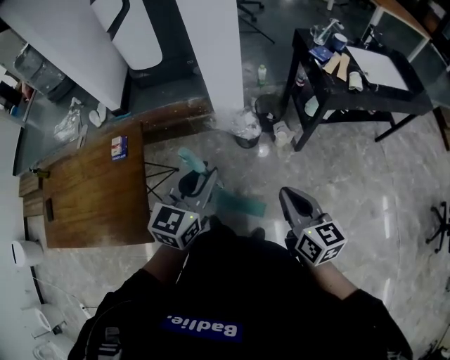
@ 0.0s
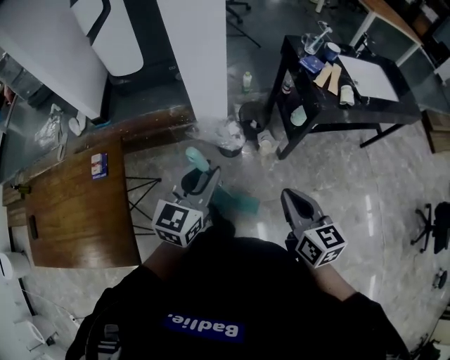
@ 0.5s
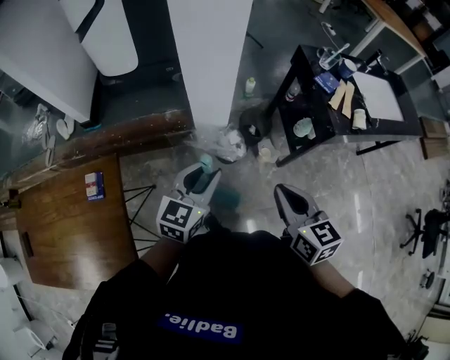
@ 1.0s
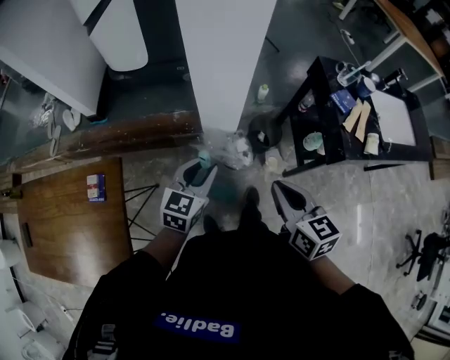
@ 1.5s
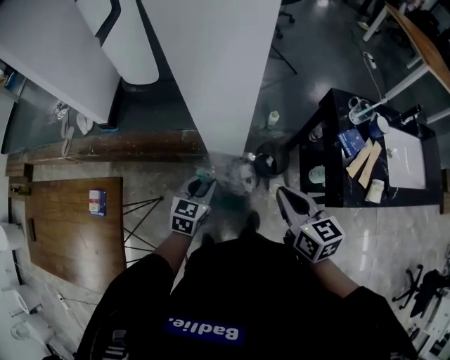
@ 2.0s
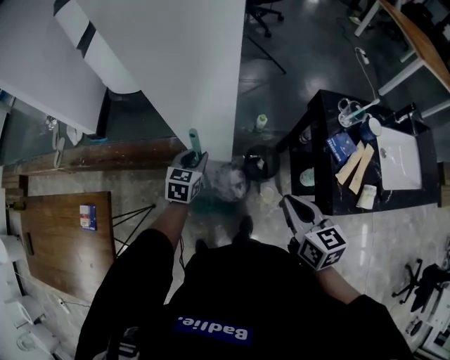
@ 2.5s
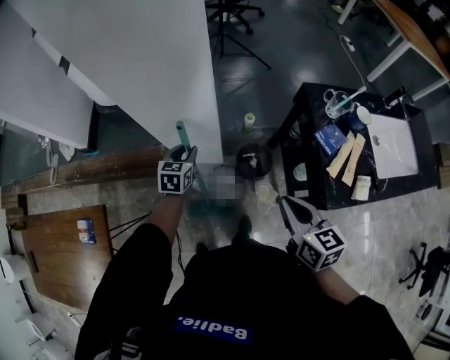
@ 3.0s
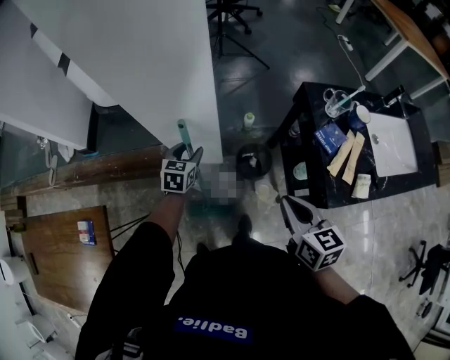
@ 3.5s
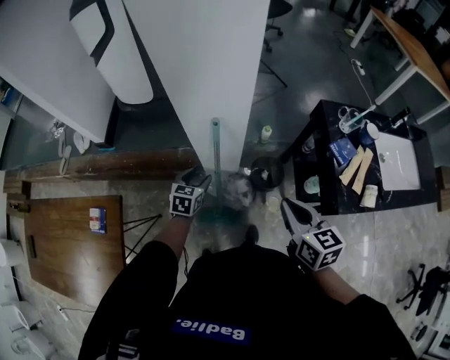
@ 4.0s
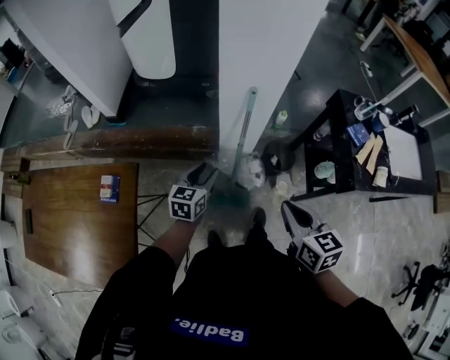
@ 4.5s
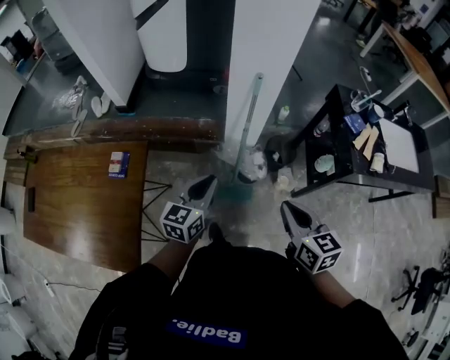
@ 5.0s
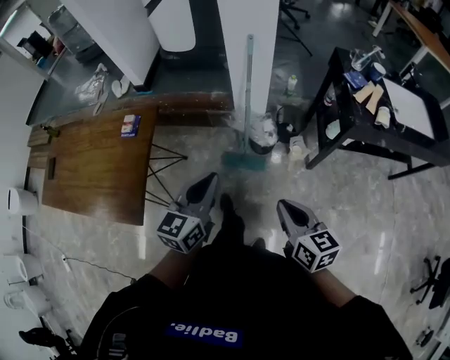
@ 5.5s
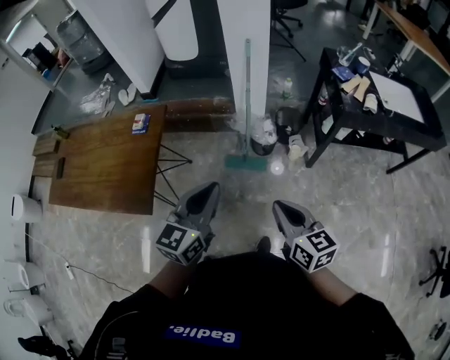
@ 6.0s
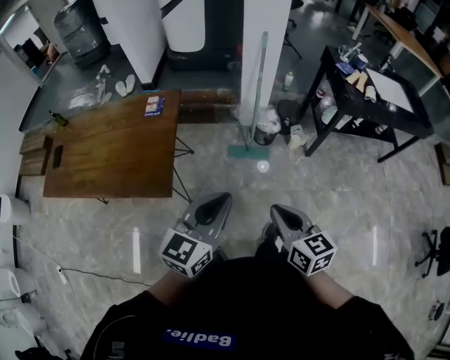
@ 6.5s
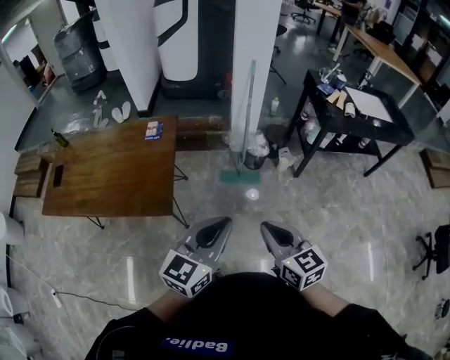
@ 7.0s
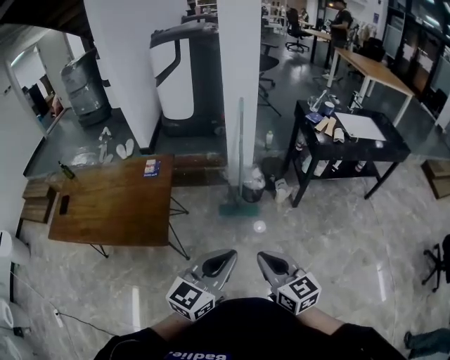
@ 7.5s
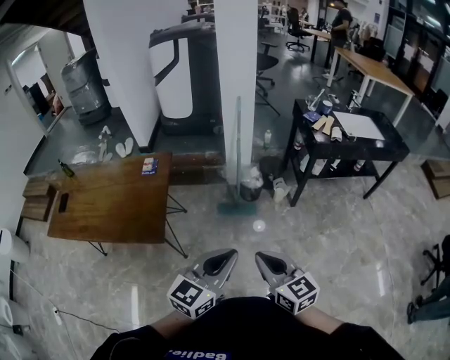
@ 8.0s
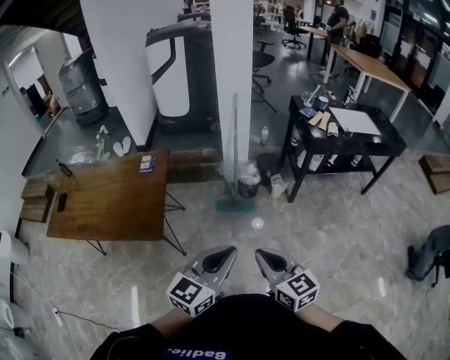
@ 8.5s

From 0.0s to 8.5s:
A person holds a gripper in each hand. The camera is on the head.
From 0.0s to 2.0s: The right gripper goes roughly 40 cm forward. Meanwhile the left gripper goes about 40 cm forward and downward, and turns by some 20 degrees.
From 2.0s to 4.0s: The right gripper moves roughly 10 cm to the right and comes back. Meanwhile the left gripper is displaced forward by some 10 cm, and opens.
From 4.0s to 6.5s: Both grippers are carried backward, approximately 70 cm. The left gripper angles its fingers upward, by about 30 degrees, and closes.
From 6.5s to 8.5s: The right gripper travels backward and upward by approximately 10 cm, while the left gripper heads to the right and backward, covering roughly 15 cm.

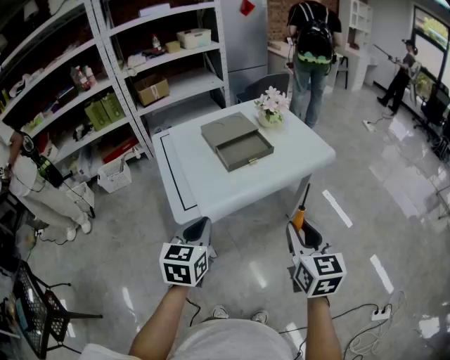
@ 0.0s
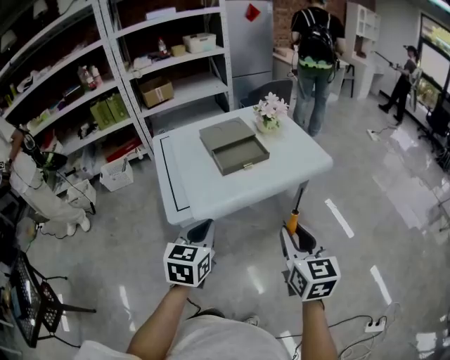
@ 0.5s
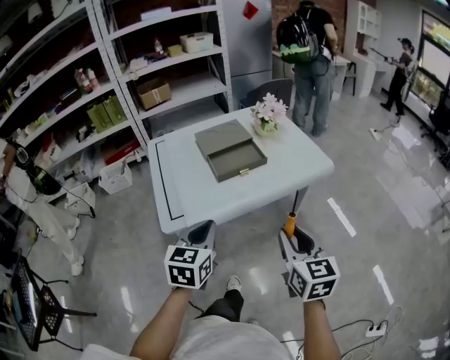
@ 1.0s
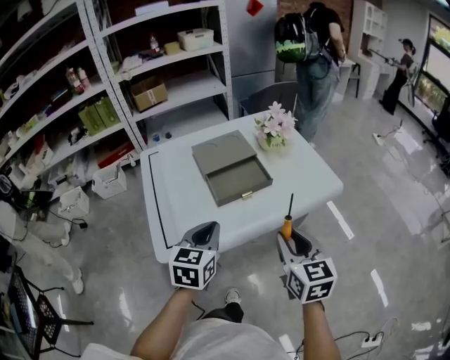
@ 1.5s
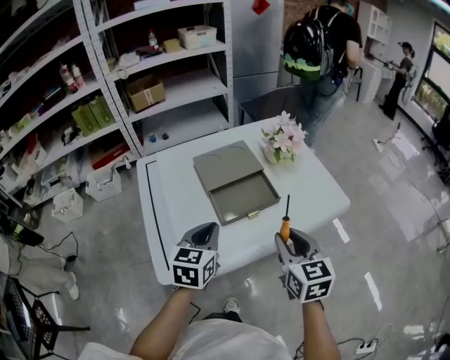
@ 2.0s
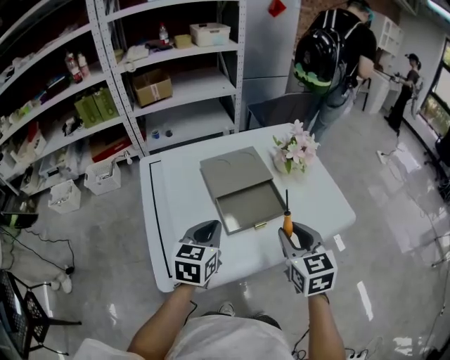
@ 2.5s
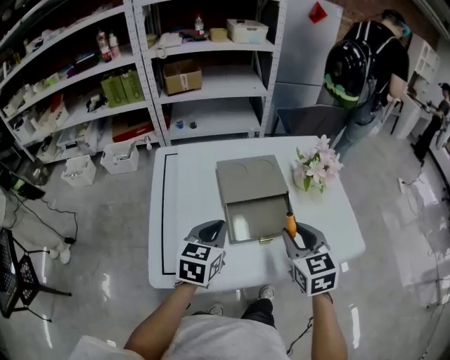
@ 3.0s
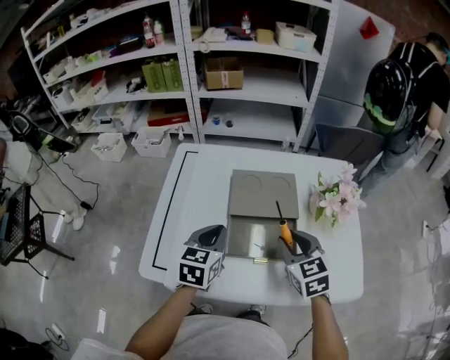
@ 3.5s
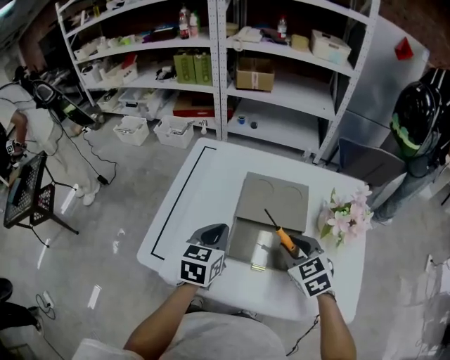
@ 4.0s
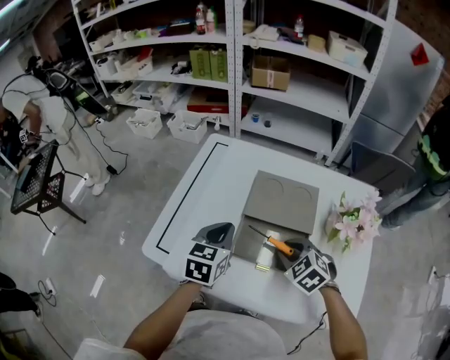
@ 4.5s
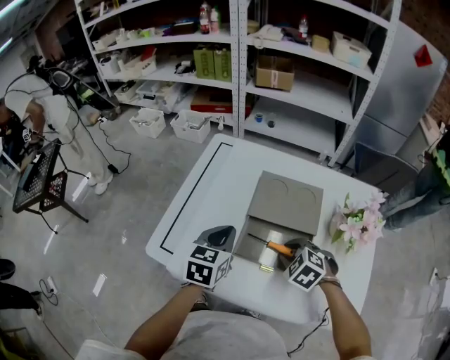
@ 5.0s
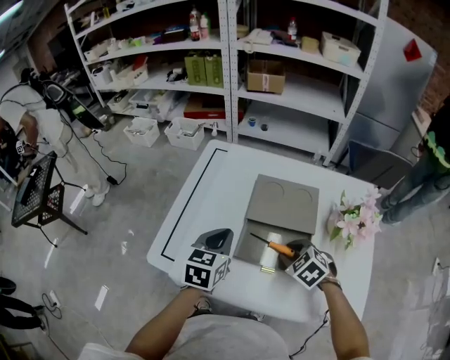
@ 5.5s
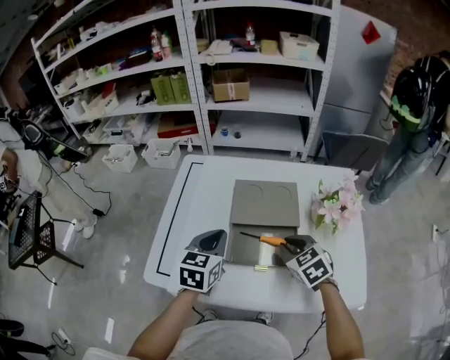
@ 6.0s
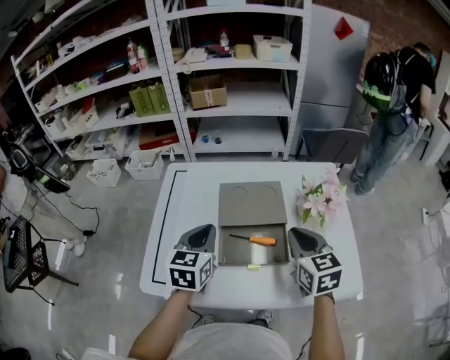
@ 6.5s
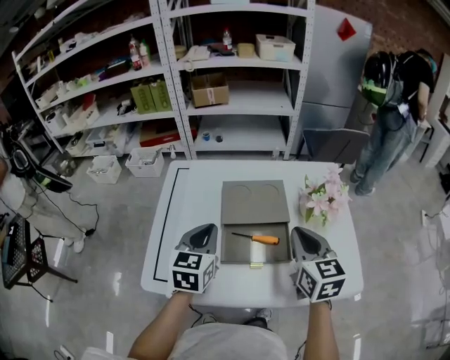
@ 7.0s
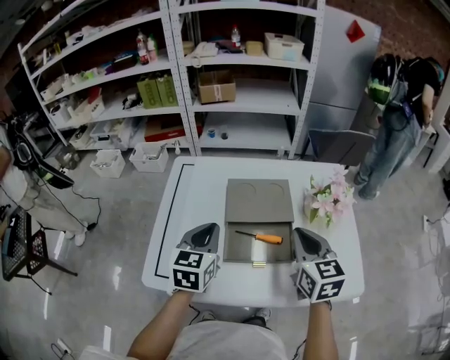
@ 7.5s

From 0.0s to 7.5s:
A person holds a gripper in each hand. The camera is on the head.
From 0.0s to 2.0s: Both grippers travel together forward, about 25 cm.
From 2.0s to 4.0s: The left gripper moves roughly 10 cm, and changes its angle by approximately 30 degrees; the right gripper moves about 25 cm, and swivels about 60 degrees.
From 4.0s to 5.5s: The right gripper is displaced downward by approximately 10 cm, and swivels some 20 degrees.
From 5.5s to 7.5s: The left gripper heads upward, covering roughly 5 cm; the right gripper travels upward by roughly 20 cm, points its fingers roughly 40 degrees further upward, and closes up.

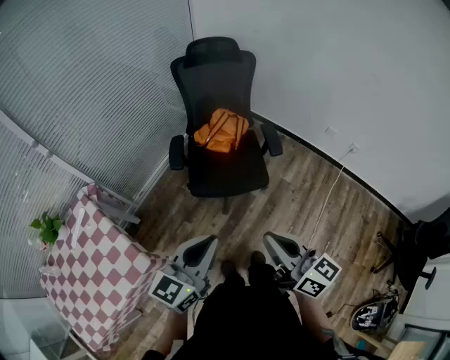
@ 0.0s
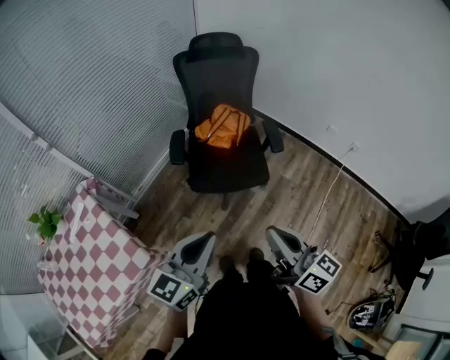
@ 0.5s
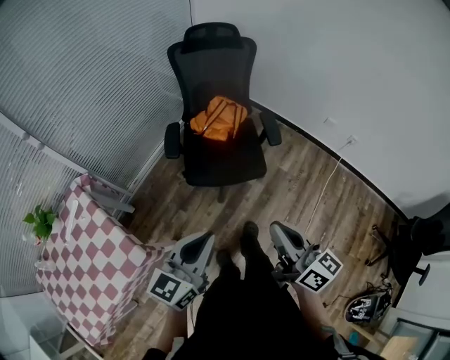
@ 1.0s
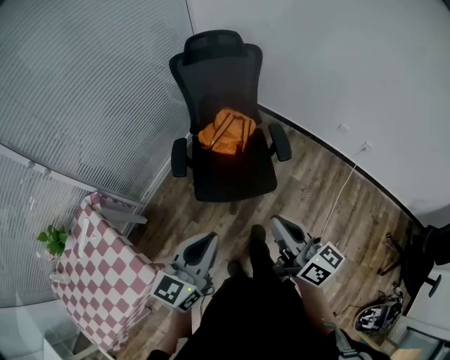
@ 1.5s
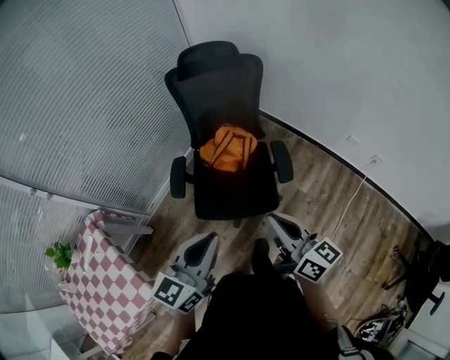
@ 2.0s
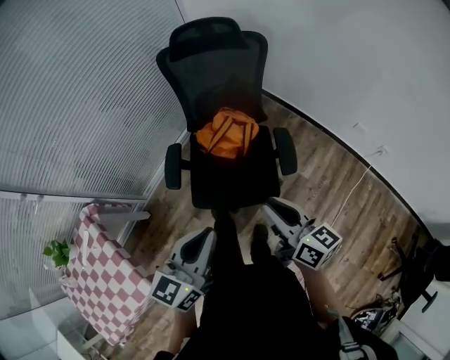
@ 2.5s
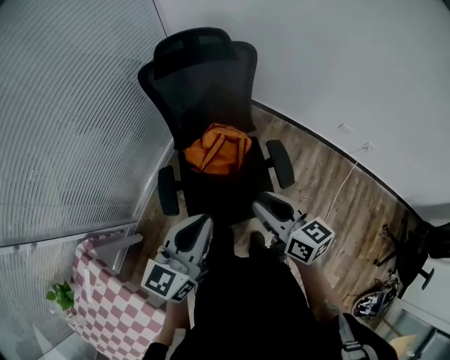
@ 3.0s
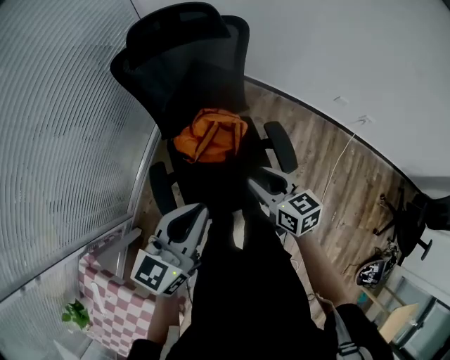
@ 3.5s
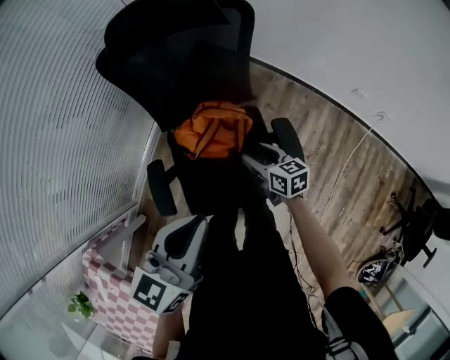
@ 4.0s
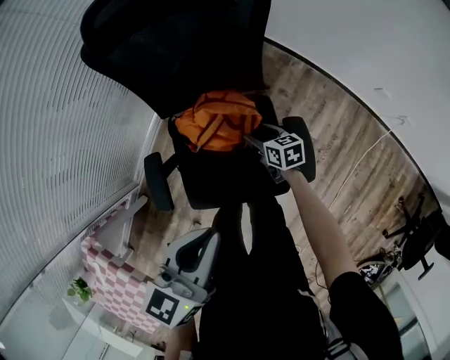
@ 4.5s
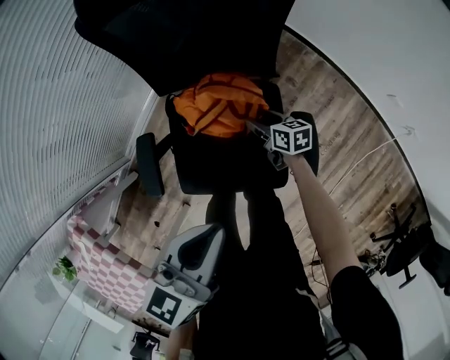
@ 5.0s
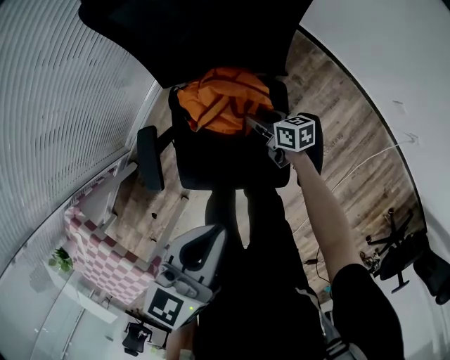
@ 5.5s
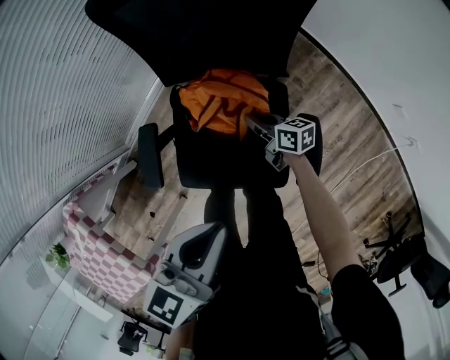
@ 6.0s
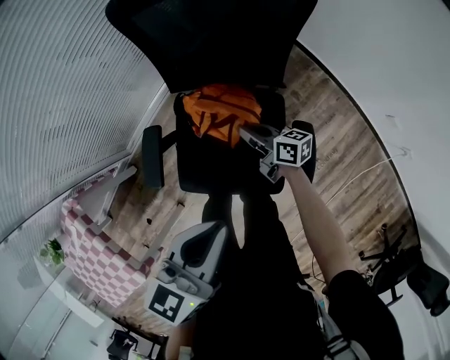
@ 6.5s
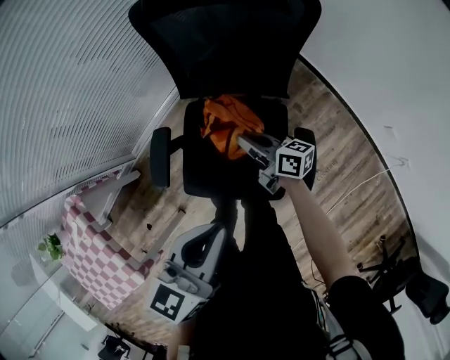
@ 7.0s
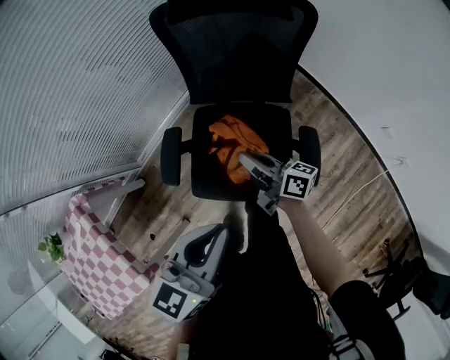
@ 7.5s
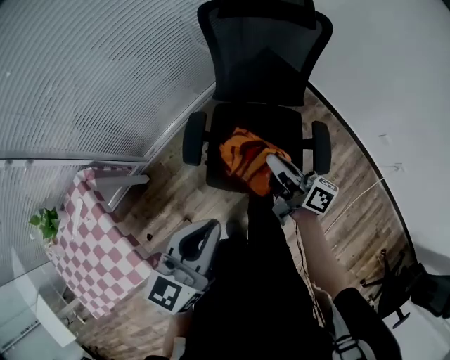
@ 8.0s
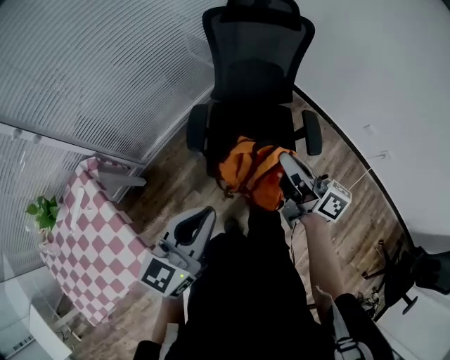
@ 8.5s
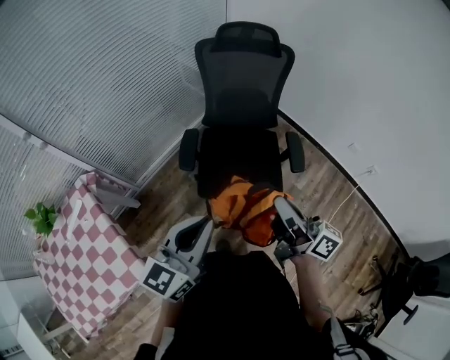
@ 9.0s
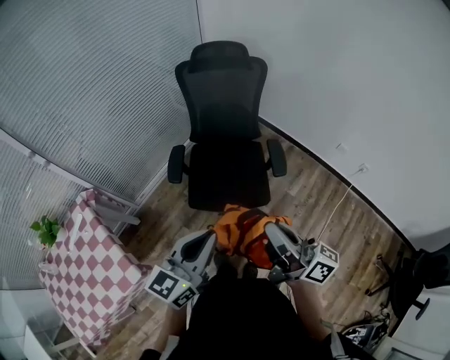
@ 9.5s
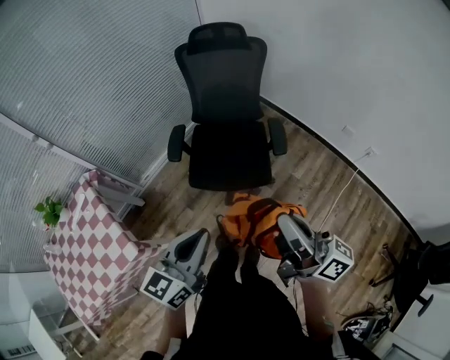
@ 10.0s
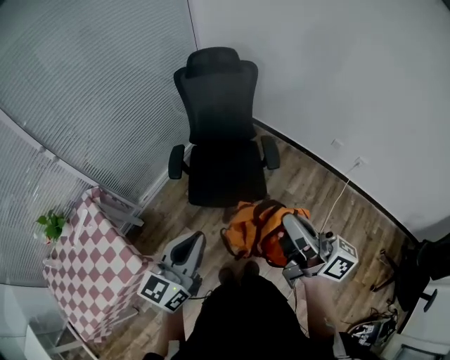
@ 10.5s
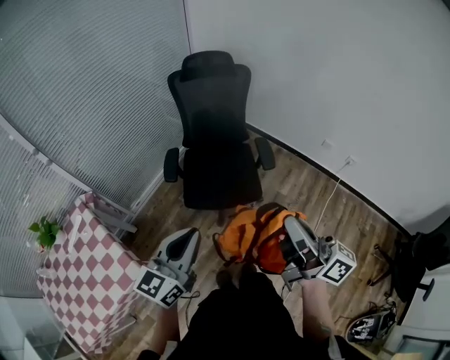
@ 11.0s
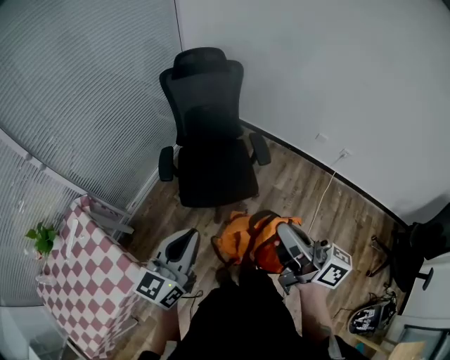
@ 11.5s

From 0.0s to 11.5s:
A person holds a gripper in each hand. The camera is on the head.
From 0.0s to 2.0s: The grippers both shift forward by roughly 25 cm.
From 2.0s to 4.0s: The right gripper goes approximately 50 cm forward and downward, tilts its fingers about 40 degrees downward, and opens its fingers; the left gripper moves forward, some 30 cm.
From 4.0s to 6.0s: The left gripper travels downward and to the right by about 10 cm, and turns by some 20 degrees; the right gripper moves downward and forward, some 15 cm, rotates roughly 30 degrees, and closes up.
From 6.0s to 7.5s: The left gripper moves upward, backward and to the left, about 15 cm. The right gripper goes about 25 cm upward and backward, and rotates roughly 20 degrees.
From 7.5s to 9.5s: The left gripper moves backward, some 35 cm; the right gripper shifts roughly 50 cm backward and upward, and rotates roughly 30 degrees.
From 9.5s to 11.5s: The right gripper heads backward, covering about 10 cm. Meanwhile the left gripper heads backward and to the left, covering roughly 10 cm.
